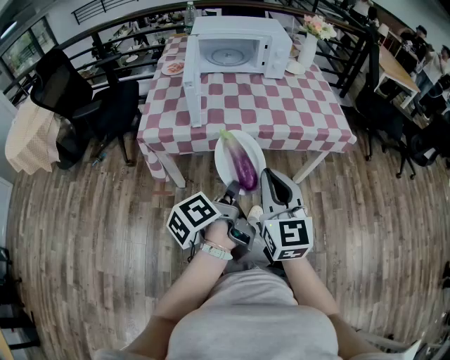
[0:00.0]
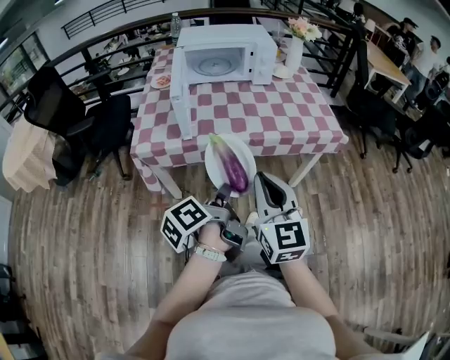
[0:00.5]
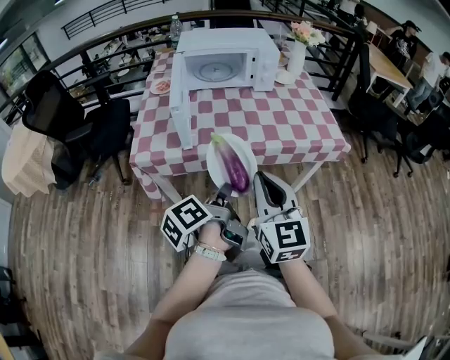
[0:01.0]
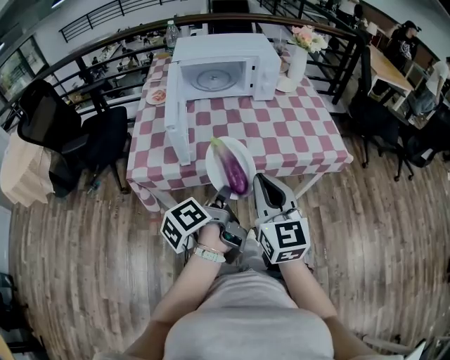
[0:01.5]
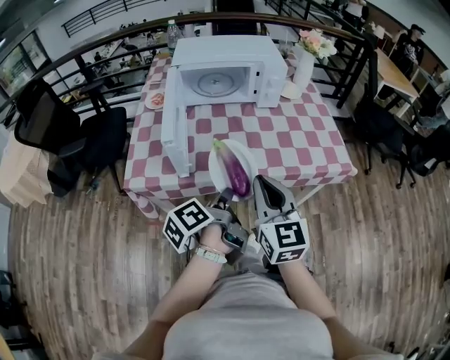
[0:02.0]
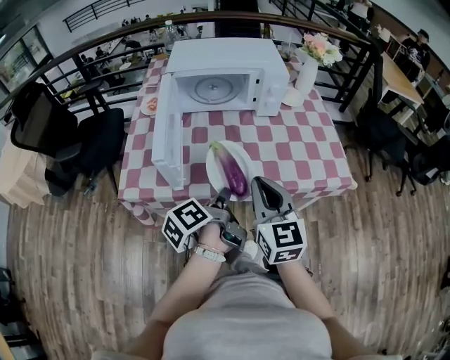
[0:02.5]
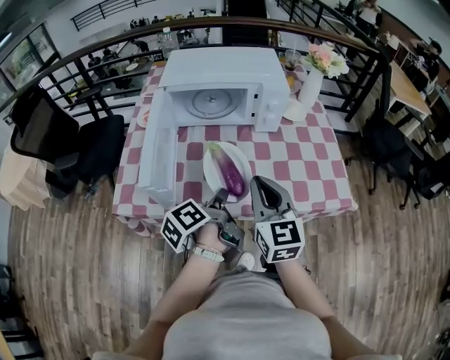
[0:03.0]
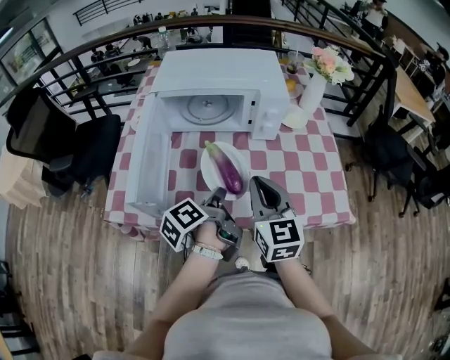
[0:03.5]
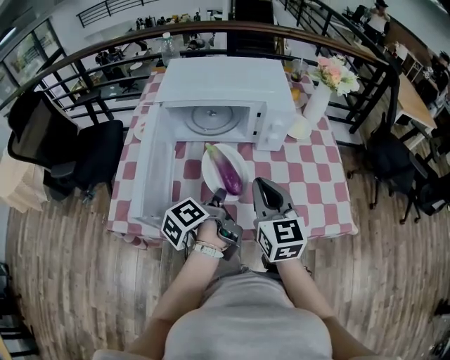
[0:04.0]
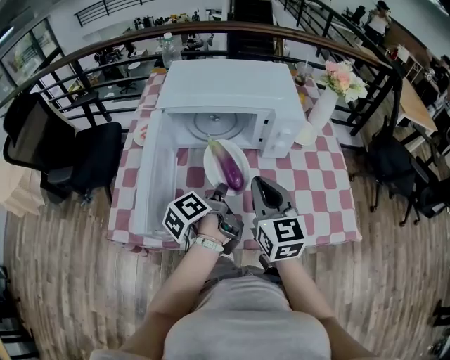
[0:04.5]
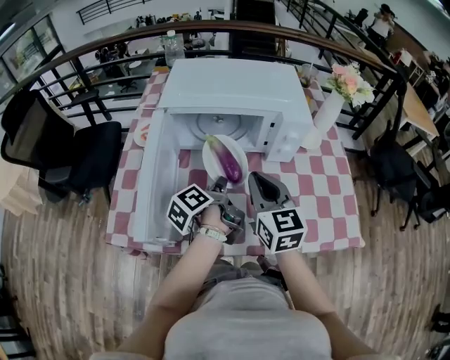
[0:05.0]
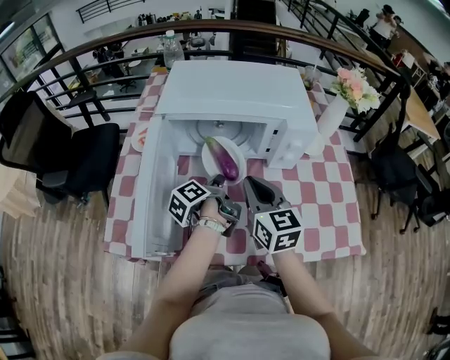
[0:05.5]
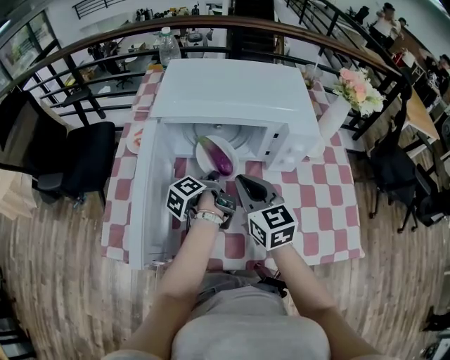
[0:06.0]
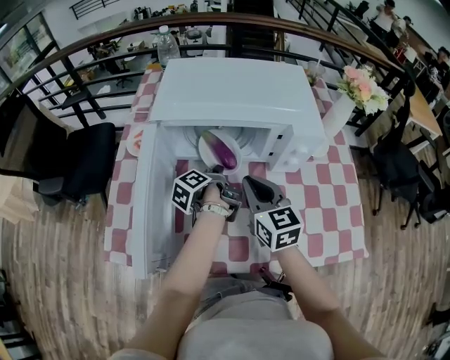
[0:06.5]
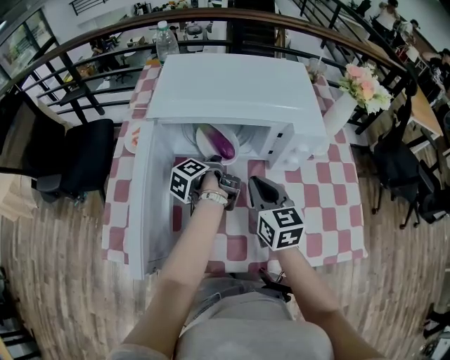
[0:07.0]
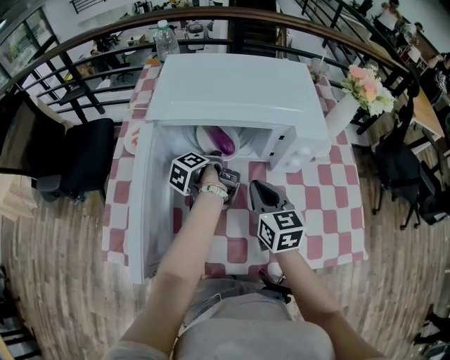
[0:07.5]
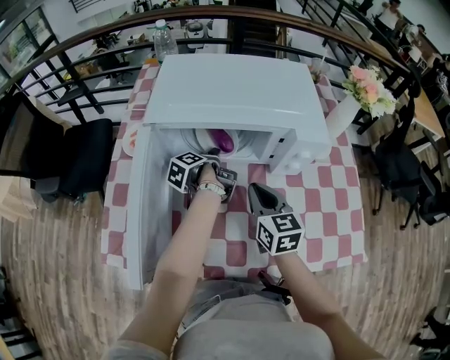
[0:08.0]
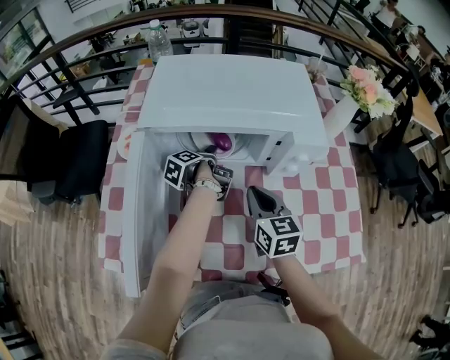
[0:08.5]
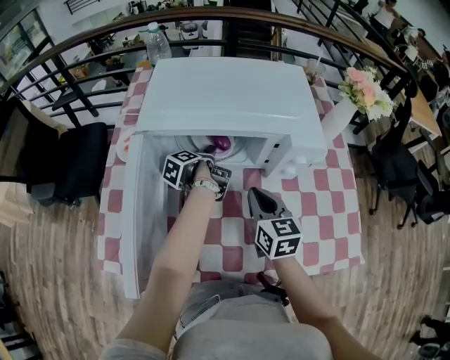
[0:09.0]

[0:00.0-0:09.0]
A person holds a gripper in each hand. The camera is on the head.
0:00.0 to 0:02.0: The right gripper changes place by about 20 cm.
0:02.0 to 0:04.5: The right gripper changes place by about 25 cm.
0:04.5 to 0:07.0: The right gripper changes place by some 15 cm.

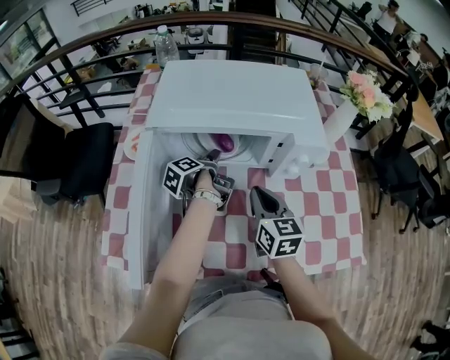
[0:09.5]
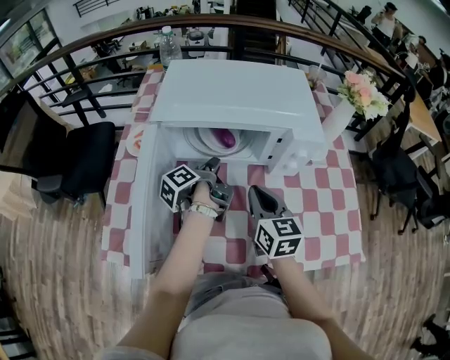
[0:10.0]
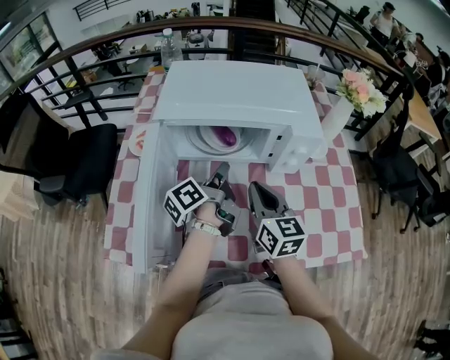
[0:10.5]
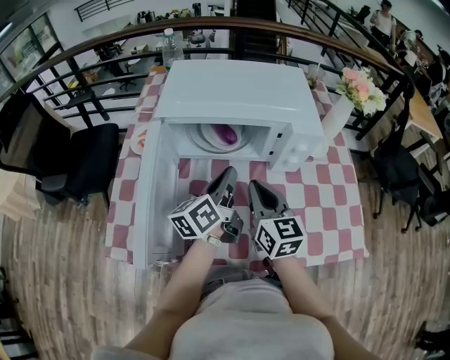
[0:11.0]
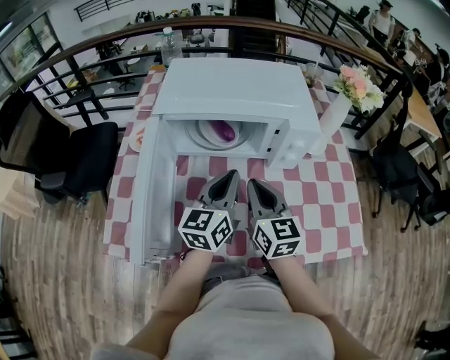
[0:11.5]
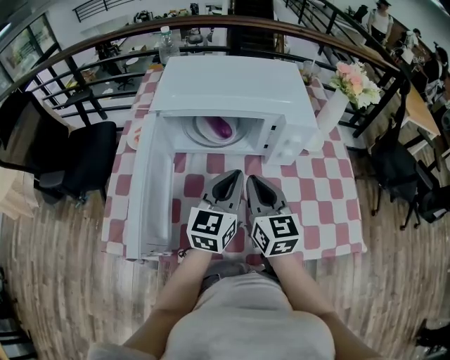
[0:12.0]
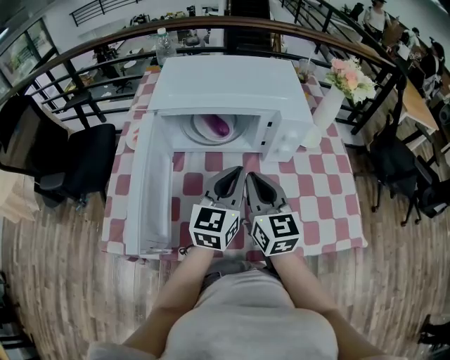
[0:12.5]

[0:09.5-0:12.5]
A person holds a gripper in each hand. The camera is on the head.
0:09.5 to 0:11.0: The right gripper changes place by some 5 cm.

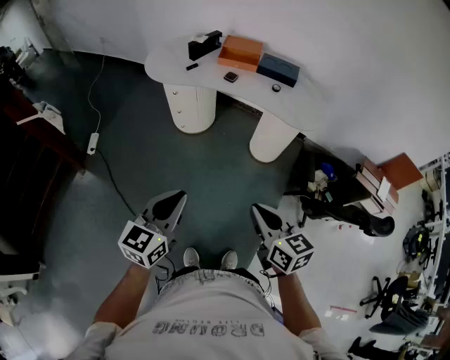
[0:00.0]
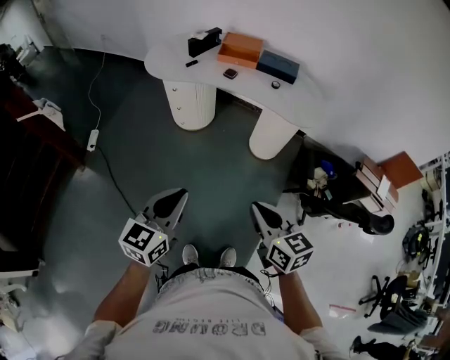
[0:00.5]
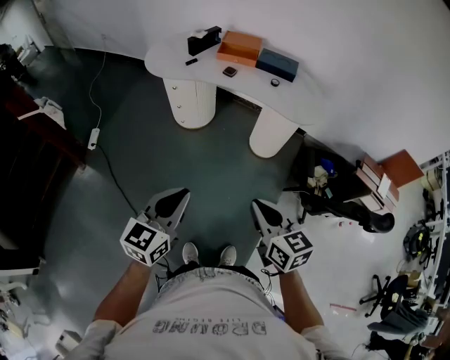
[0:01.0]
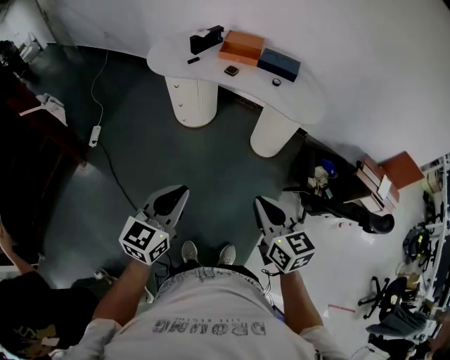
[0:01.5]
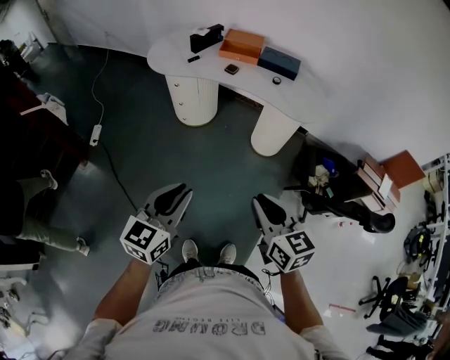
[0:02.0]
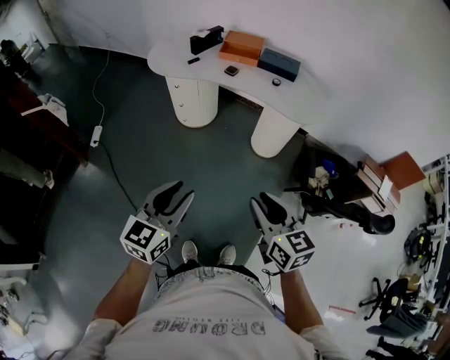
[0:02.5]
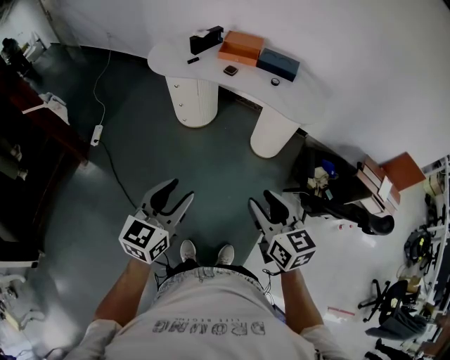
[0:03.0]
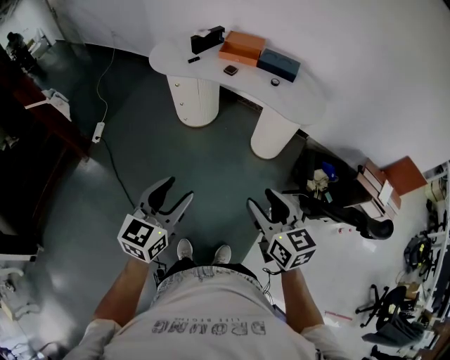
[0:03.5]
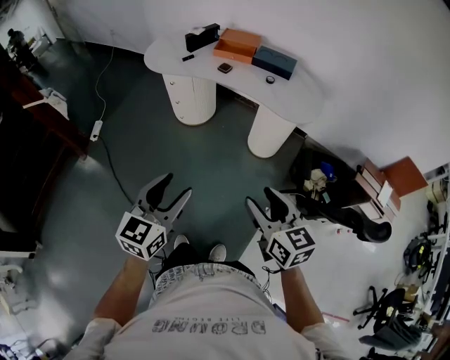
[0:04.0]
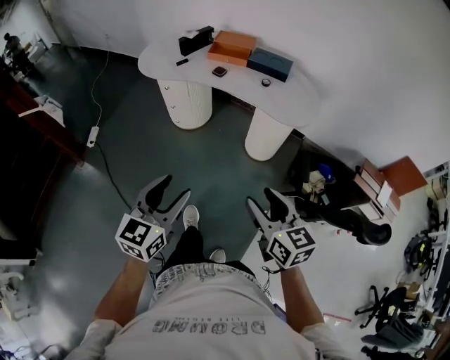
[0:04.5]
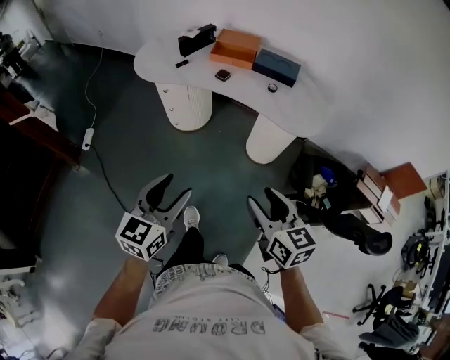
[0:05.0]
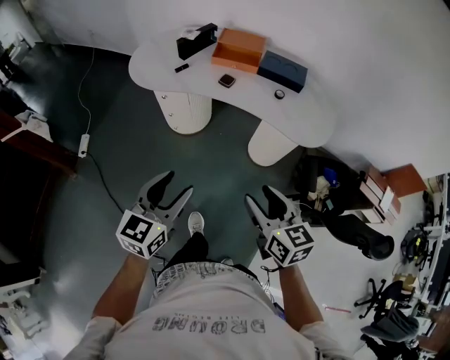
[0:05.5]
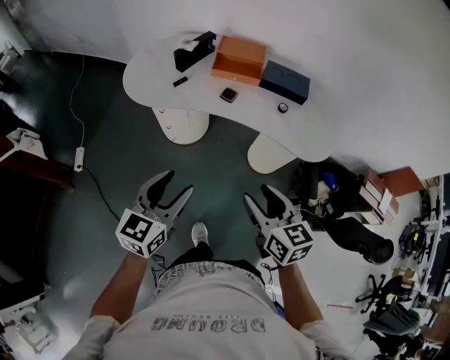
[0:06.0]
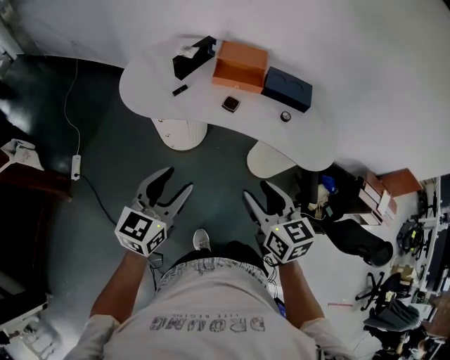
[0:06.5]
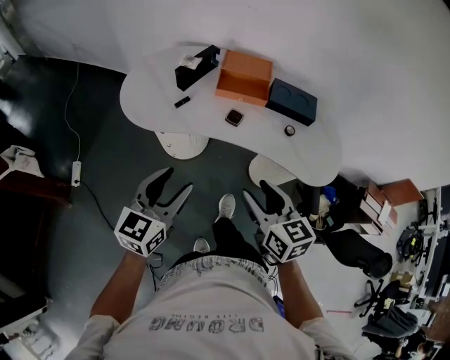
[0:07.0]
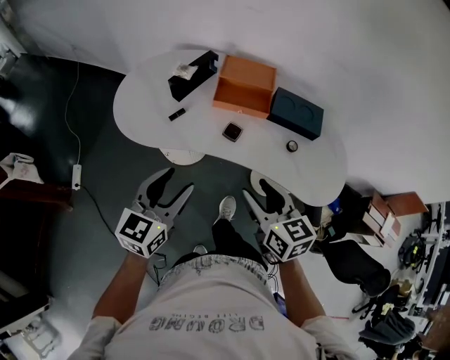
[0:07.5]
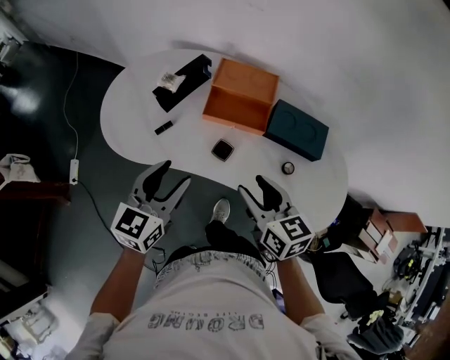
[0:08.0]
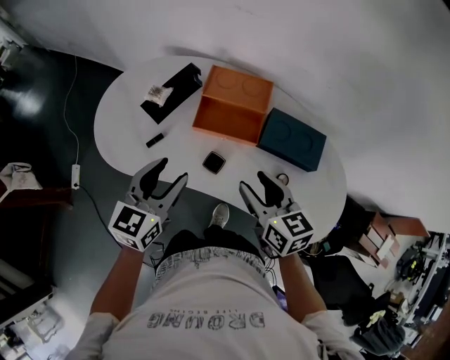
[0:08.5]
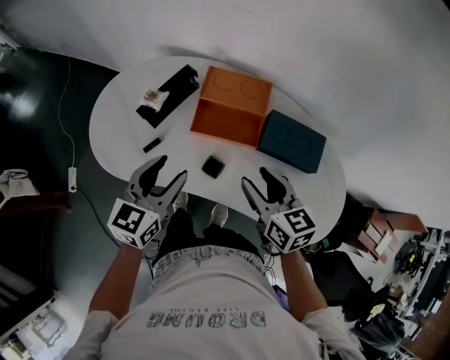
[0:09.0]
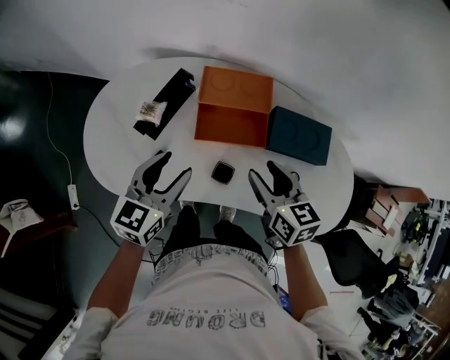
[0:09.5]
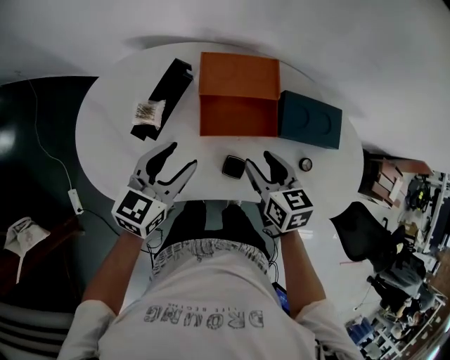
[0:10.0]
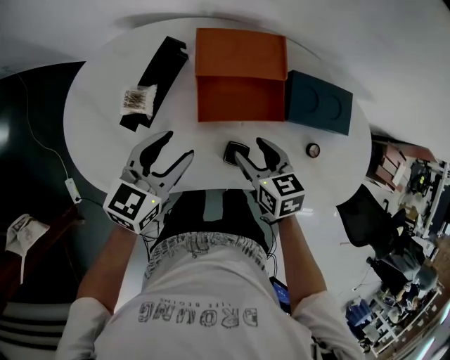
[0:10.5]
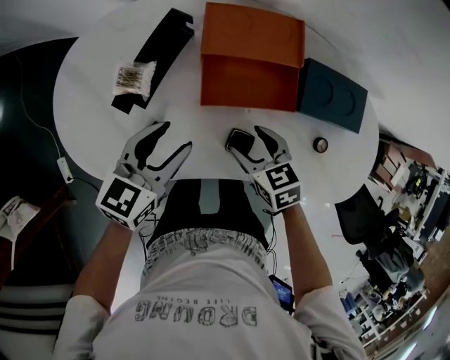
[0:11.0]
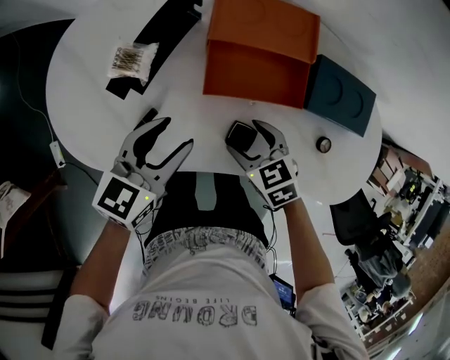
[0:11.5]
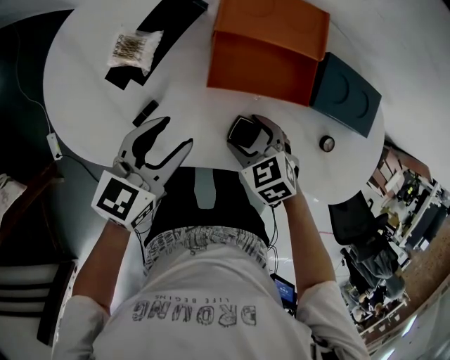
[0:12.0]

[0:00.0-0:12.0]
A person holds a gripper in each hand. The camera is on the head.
0:00.0 to 0:02.0: The grippers make only small movements.
0:02.0 to 0:04.0: The two grippers go some 5 cm to the right. The left gripper opens its fingers; the right gripper opens its fingers.
0:04.0 to 0:06.0: The right gripper goes some 30 cm forward and to the left, while the left gripper goes about 30 cm forward.
0:06.0 to 0:08.0: Both grippers travel together forward, about 35 cm.
0:08.0 to 0:10.0: The right gripper is displaced forward and downward by some 20 cm, and swivels about 20 degrees. The left gripper shifts roughly 20 cm forward, and turns by approximately 20 degrees.
0:10.0 to 0:12.0: The right gripper heads downward, covering some 15 cm, and swivels roughly 40 degrees. Meanwhile the left gripper heads downward, covering some 10 cm.

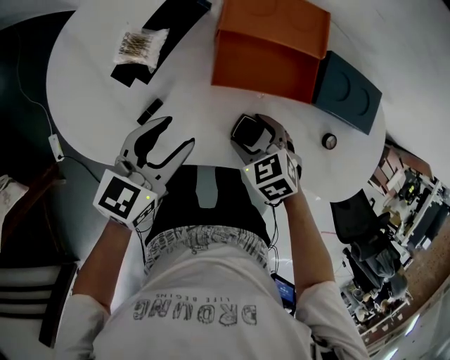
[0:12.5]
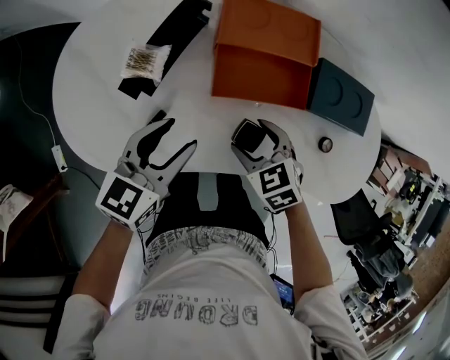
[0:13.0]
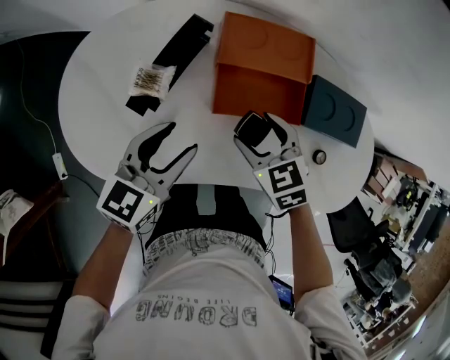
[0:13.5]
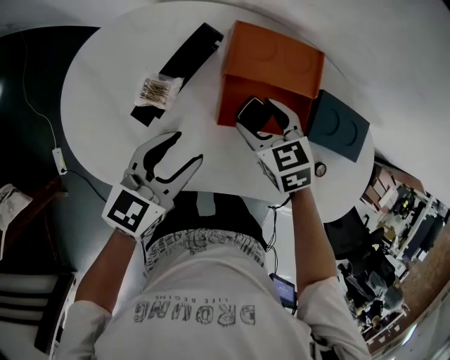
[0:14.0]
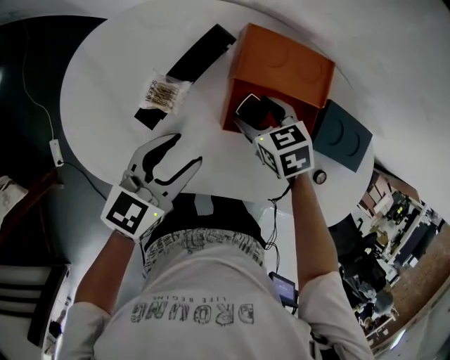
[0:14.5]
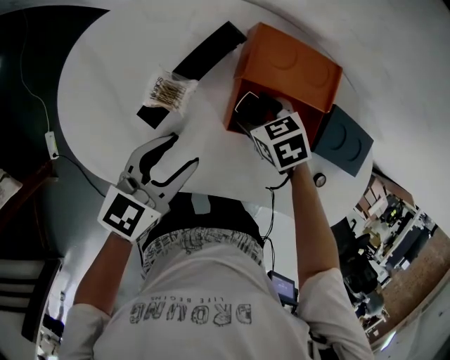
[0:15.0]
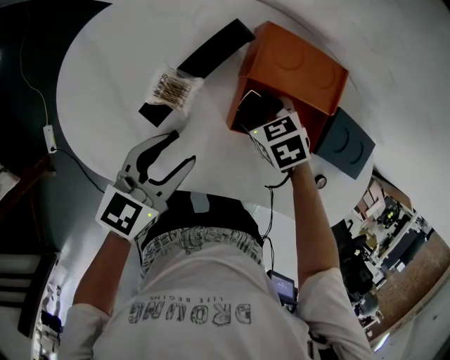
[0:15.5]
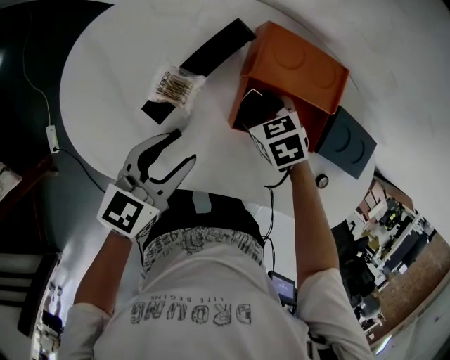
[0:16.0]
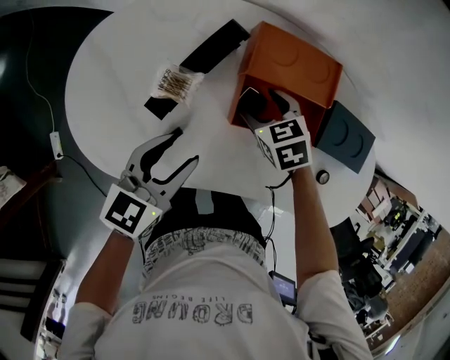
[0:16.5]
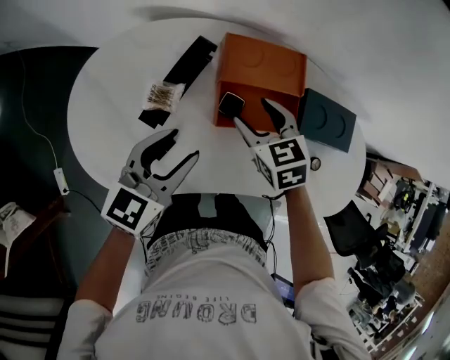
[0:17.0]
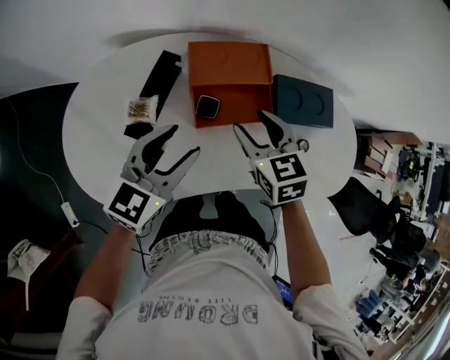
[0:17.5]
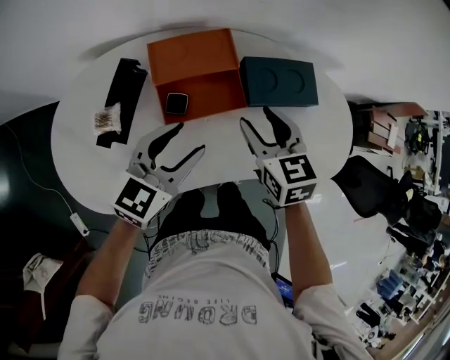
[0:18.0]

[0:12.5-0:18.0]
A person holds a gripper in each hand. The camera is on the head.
0:12.5 to 0:14.5: The right gripper heads forward, covering roughly 15 cm; the left gripper moves forward, roughly 5 cm.
0:14.5 to 0:16.0: The grippers make only small movements.
0:16.0 to 0:18.0: The left gripper changes place by some 20 cm, and rotates some 30 degrees, while the right gripper moves approximately 25 cm, and rotates roughly 50 degrees.
